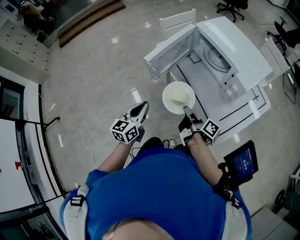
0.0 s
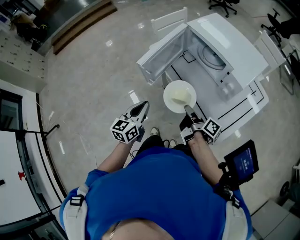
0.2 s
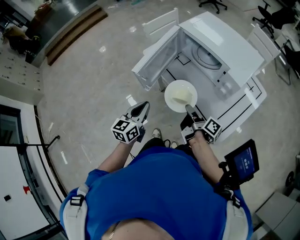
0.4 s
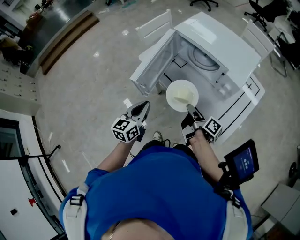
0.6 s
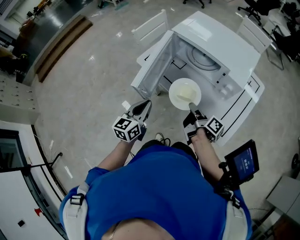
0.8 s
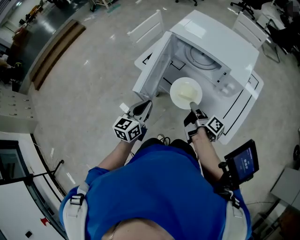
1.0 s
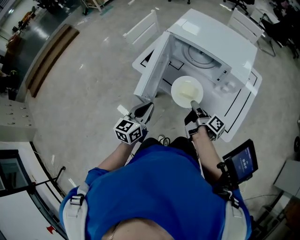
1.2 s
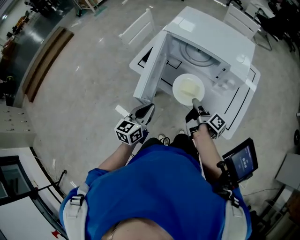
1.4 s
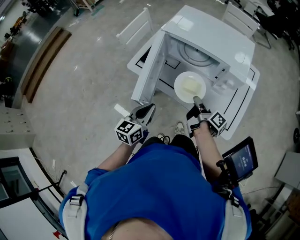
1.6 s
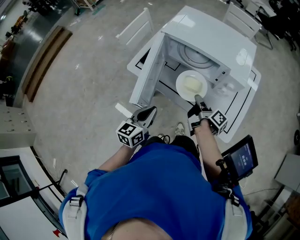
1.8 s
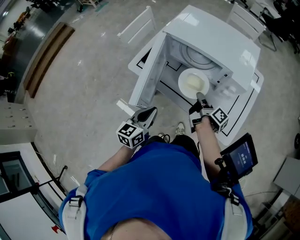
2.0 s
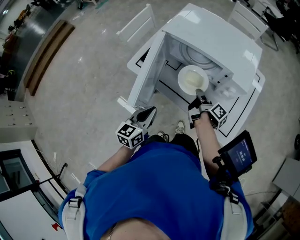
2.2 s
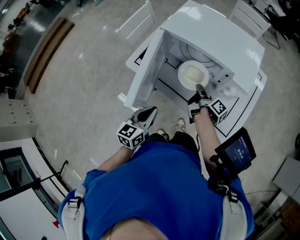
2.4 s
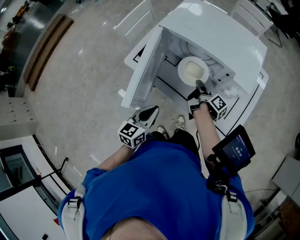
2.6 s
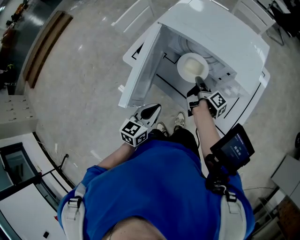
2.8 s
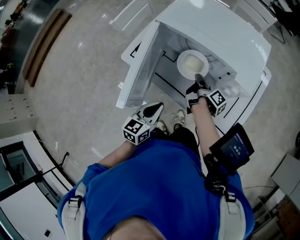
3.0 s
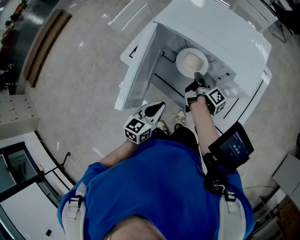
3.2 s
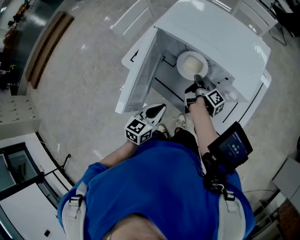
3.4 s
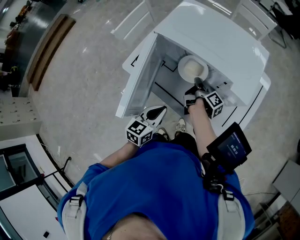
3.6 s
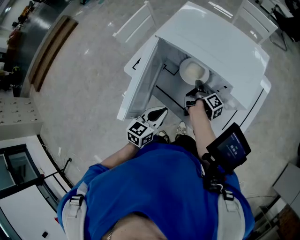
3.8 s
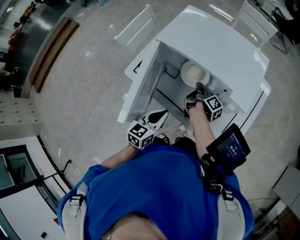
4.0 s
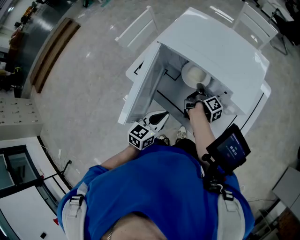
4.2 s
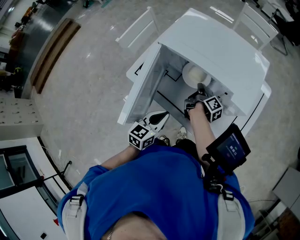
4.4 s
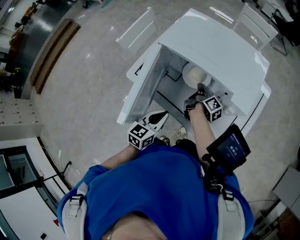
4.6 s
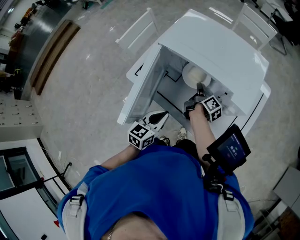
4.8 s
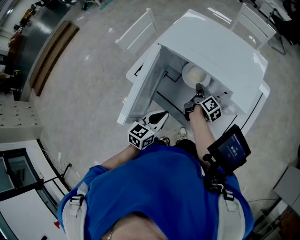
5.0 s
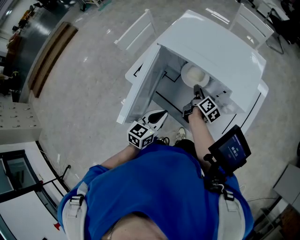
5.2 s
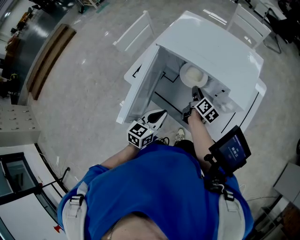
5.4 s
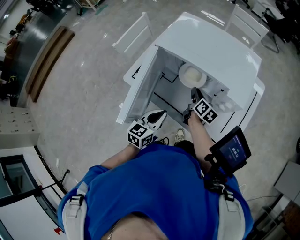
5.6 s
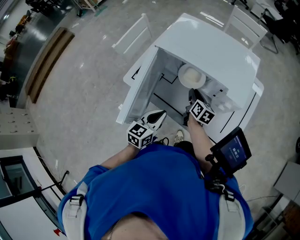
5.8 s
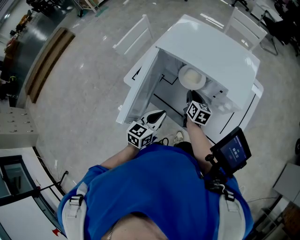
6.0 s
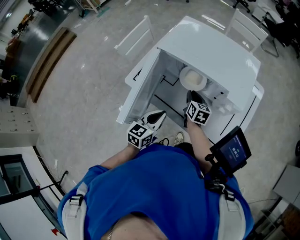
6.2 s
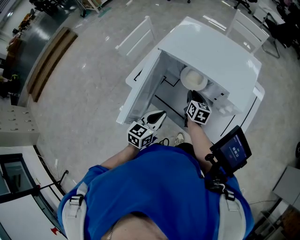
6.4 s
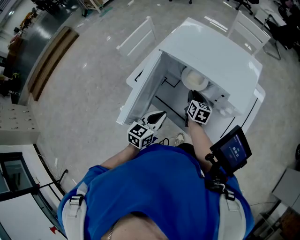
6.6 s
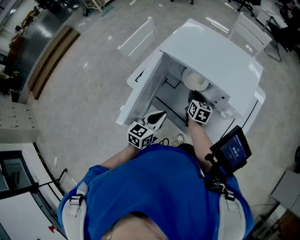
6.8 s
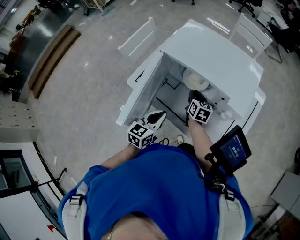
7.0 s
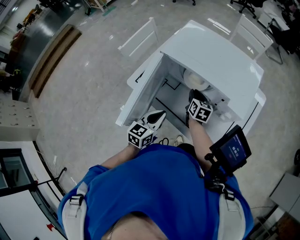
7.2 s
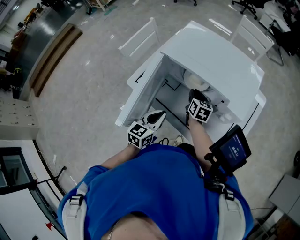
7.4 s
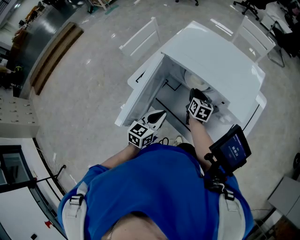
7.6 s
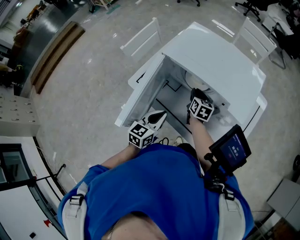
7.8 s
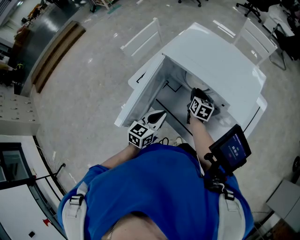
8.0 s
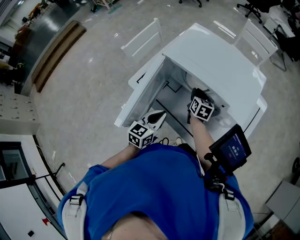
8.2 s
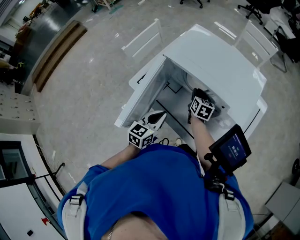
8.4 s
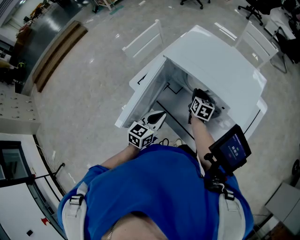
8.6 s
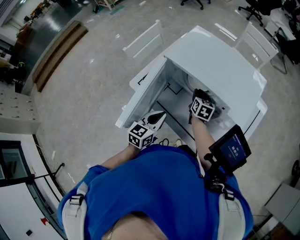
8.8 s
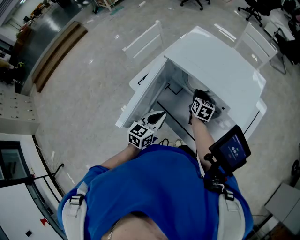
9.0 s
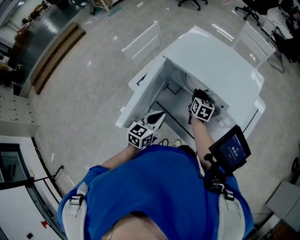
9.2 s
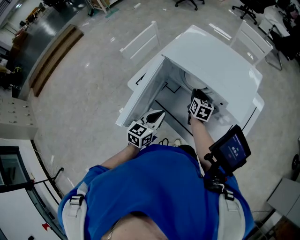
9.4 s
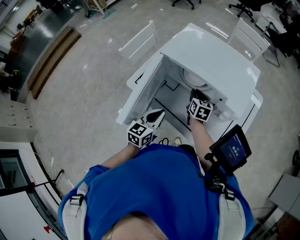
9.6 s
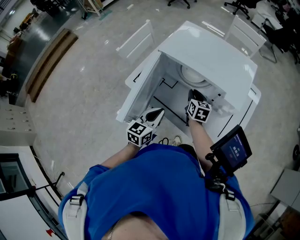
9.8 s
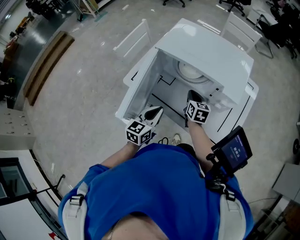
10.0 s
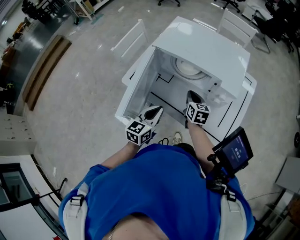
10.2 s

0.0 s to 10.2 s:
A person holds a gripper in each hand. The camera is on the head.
0.0 to 1.4 s: The left gripper moves about 15 cm, and swivels some 30 degrees. The right gripper moves about 10 cm, and turns by some 30 degrees.
1.4 to 3.0 s: The left gripper goes some 5 cm to the right. Meanwhile the right gripper travels forward and downward by approximately 15 cm.
3.0 to 4.4 s: The right gripper heads forward, covering approximately 5 cm.
4.4 to 5.8 s: The right gripper rolls counterclockwise, seen from behind, by roughly 50 degrees.
5.8 to 8.8 s: There are only small adjustments of the grippers.
8.8 to 10.2 s: The right gripper is displaced backward by approximately 10 cm.

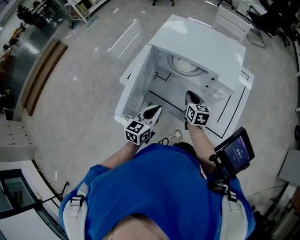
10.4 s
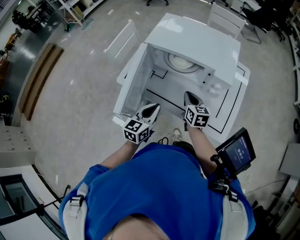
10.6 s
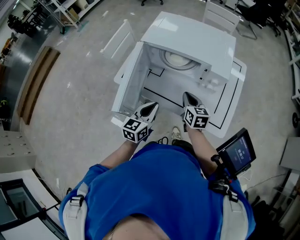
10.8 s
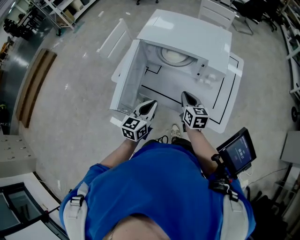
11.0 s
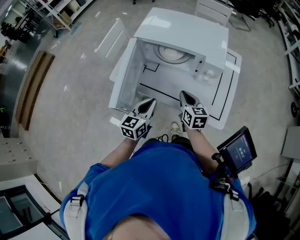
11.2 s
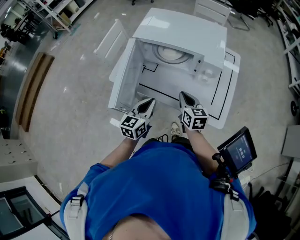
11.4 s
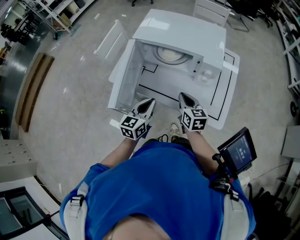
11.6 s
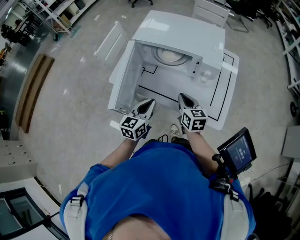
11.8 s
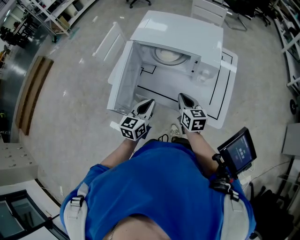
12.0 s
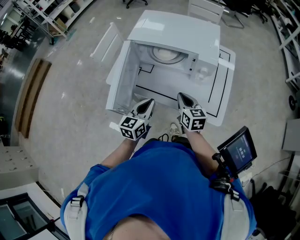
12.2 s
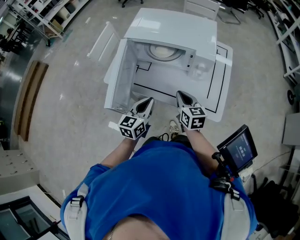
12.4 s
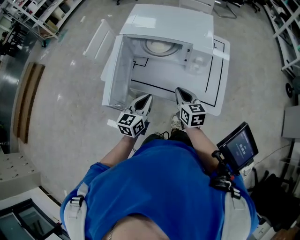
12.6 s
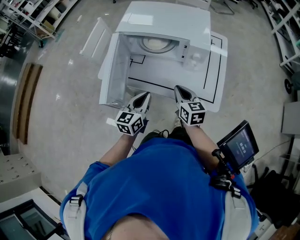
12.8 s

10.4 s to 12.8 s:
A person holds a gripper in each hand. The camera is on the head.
10.4 to 11.6 s: The right gripper travels backward by roughly 10 cm.
11.6 to 12.8 s: The grippers make only small movements.

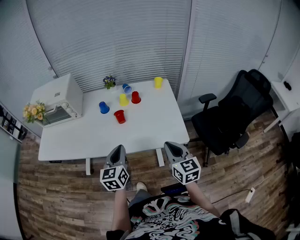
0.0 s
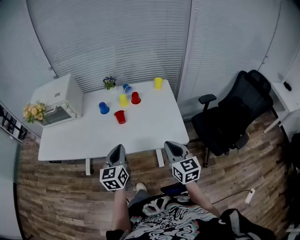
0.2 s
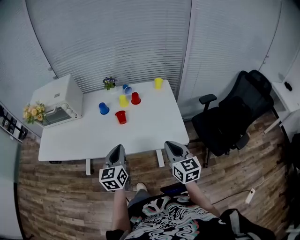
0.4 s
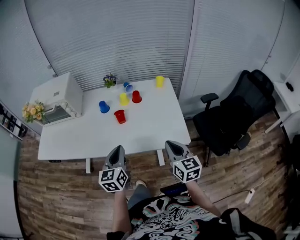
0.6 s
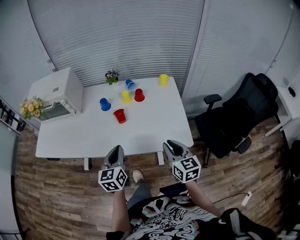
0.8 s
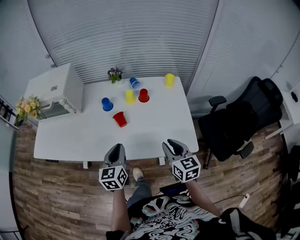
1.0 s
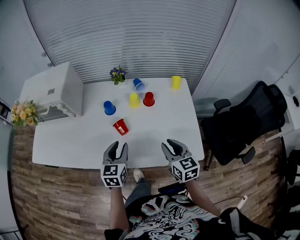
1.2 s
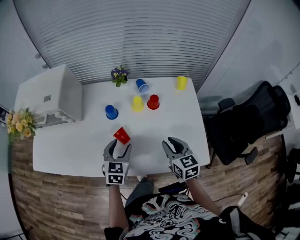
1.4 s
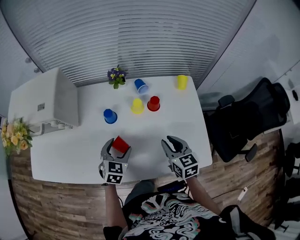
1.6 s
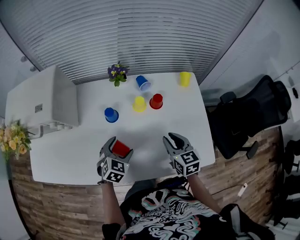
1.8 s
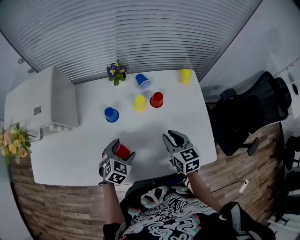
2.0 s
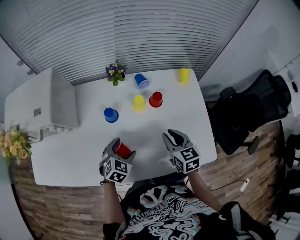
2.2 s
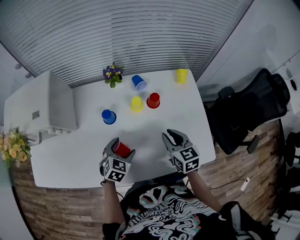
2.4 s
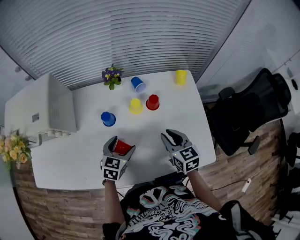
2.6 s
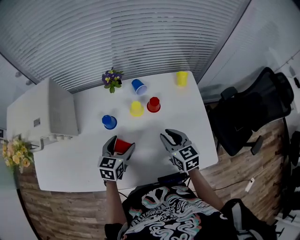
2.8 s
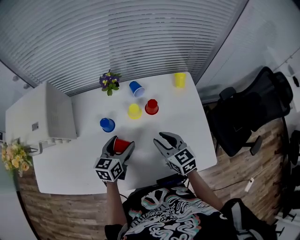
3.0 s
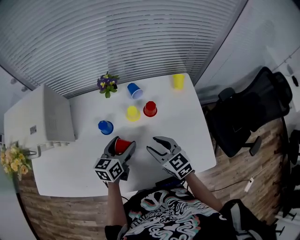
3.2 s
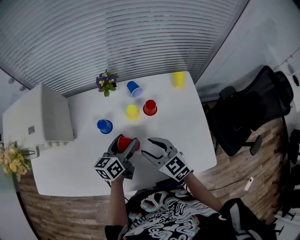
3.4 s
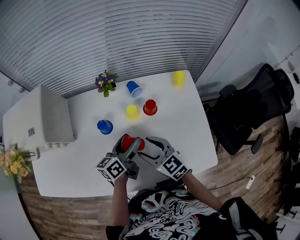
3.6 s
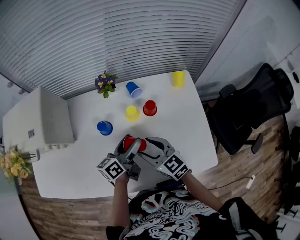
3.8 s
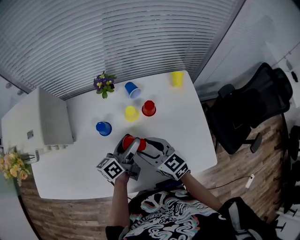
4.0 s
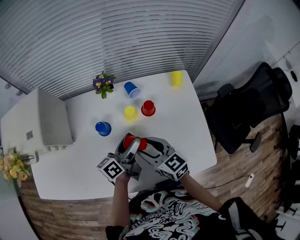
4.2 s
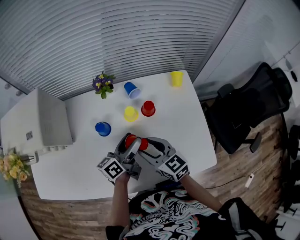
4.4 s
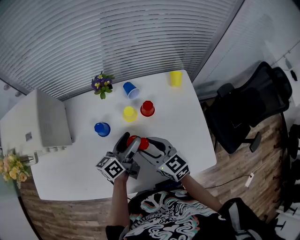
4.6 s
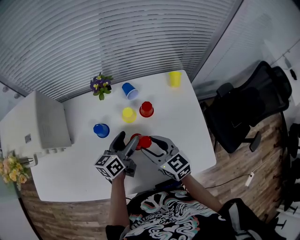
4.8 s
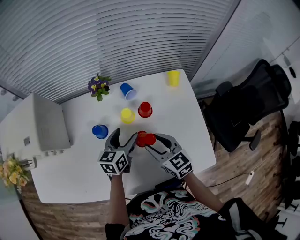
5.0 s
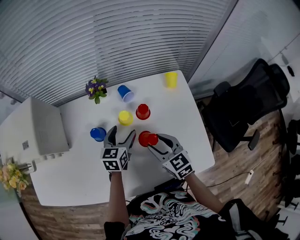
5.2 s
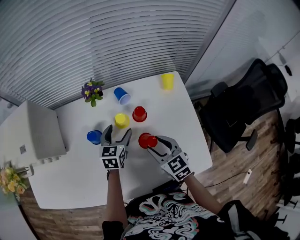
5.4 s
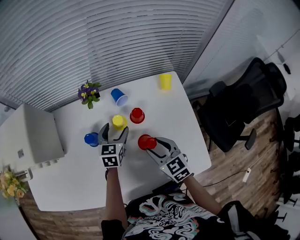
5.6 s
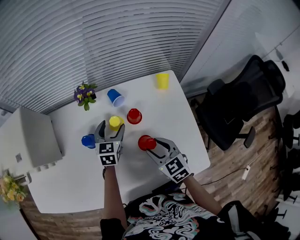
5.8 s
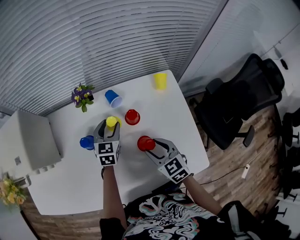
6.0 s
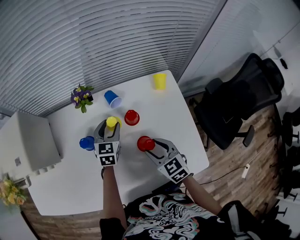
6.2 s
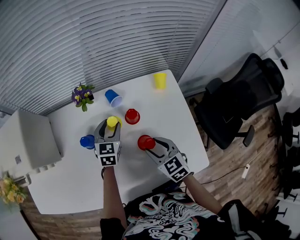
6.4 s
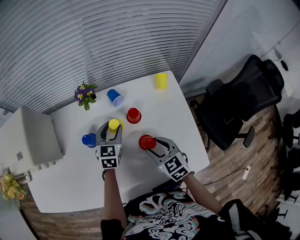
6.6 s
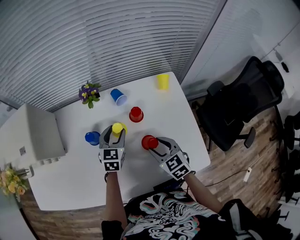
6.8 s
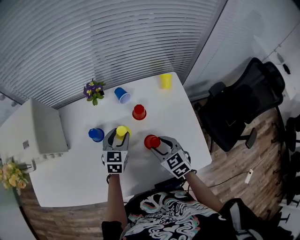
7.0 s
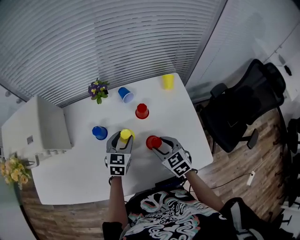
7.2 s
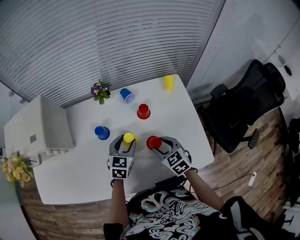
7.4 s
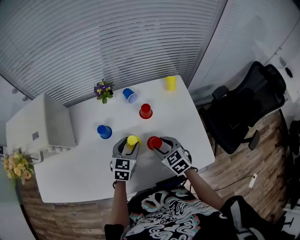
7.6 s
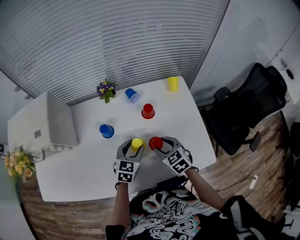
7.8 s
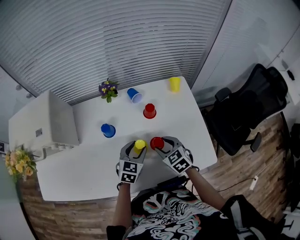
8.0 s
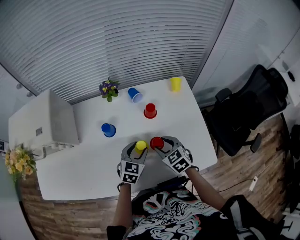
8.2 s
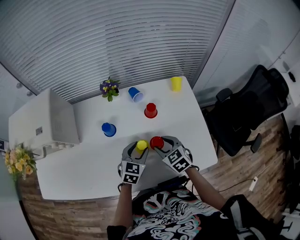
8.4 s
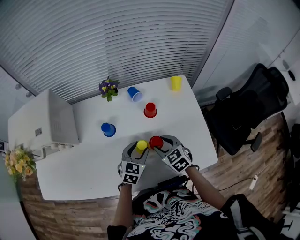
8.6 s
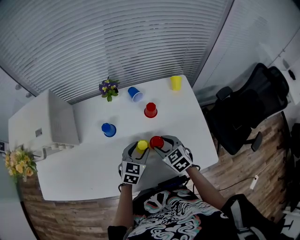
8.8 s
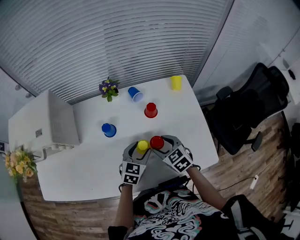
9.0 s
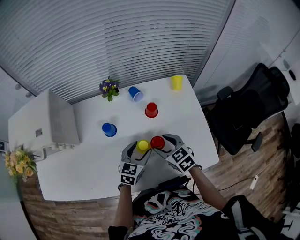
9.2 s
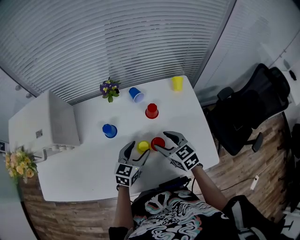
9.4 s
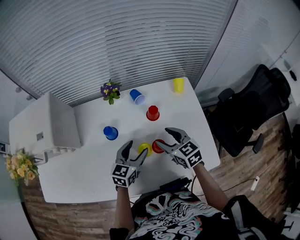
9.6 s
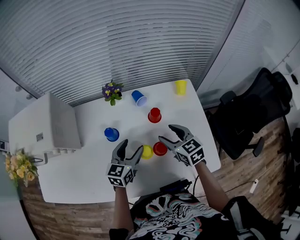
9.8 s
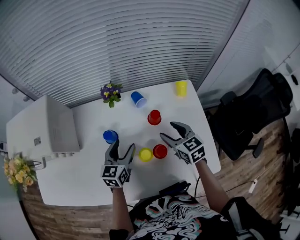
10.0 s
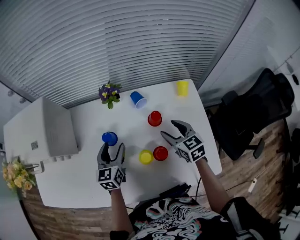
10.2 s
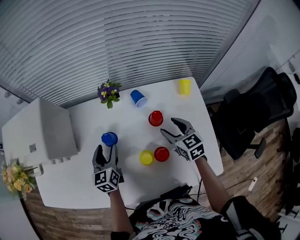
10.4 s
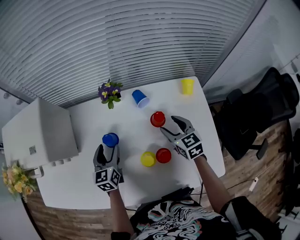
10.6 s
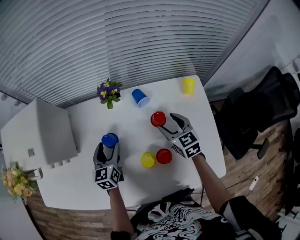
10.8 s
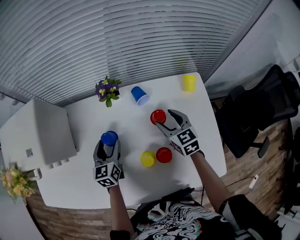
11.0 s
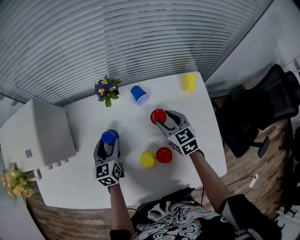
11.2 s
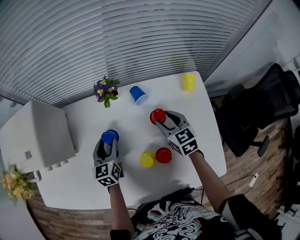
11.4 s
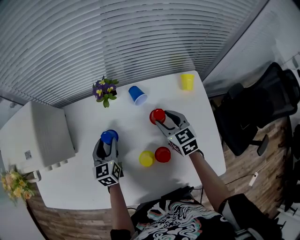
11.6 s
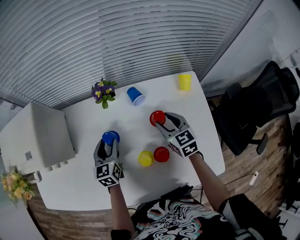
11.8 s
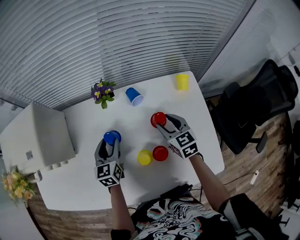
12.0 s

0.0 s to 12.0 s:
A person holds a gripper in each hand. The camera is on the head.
0.0 to 1.6 s: The two grippers go about 25 cm forward and downward. The left gripper changes its angle by about 40 degrees, and opens.
1.6 to 3.0 s: The right gripper ends up roughly 5 cm from where it was; the left gripper goes some 5 cm forward, and swivels about 30 degrees.
3.0 to 4.4 s: The left gripper moves to the right, some 5 cm, and rotates some 40 degrees, while the right gripper shifts roughly 5 cm to the left.
4.4 to 6.0 s: The left gripper shifts approximately 15 cm forward and downward, twists approximately 50 degrees clockwise, seen from behind, and closes up; the right gripper heads to the right and downward, covering some 10 cm, and changes its angle by approximately 20 degrees.
6.0 to 7.6 s: The left gripper travels backward by some 15 cm.
7.6 to 9.0 s: The grippers make only small movements.
9.0 to 10.4 s: The right gripper moves forward, about 15 cm. The left gripper heads to the left and forward, covering some 20 cm, and turns by roughly 40 degrees.
10.4 to 12.0 s: The grippers stay close to where they were, moving slightly.
